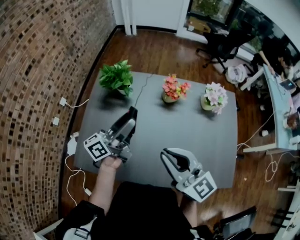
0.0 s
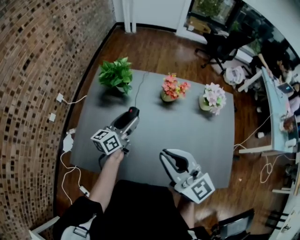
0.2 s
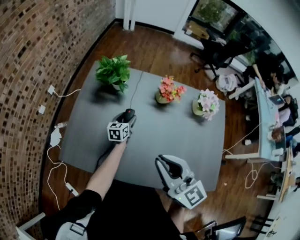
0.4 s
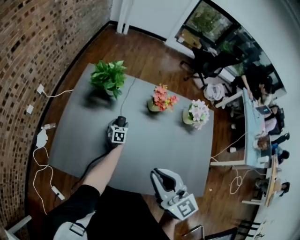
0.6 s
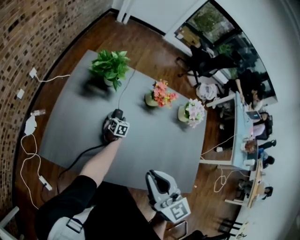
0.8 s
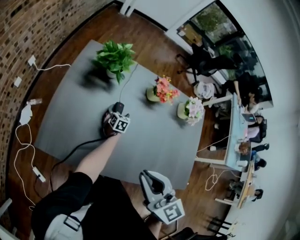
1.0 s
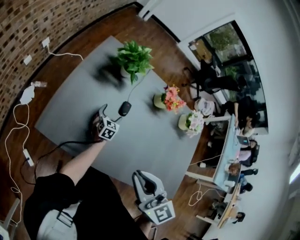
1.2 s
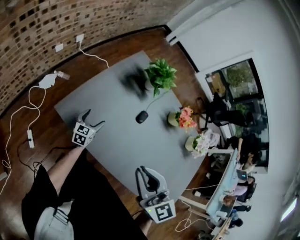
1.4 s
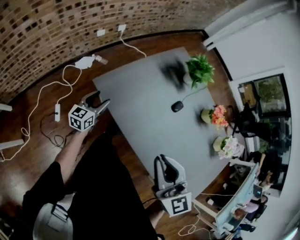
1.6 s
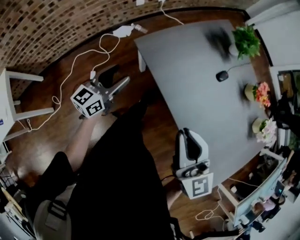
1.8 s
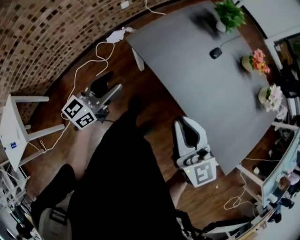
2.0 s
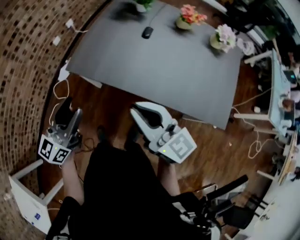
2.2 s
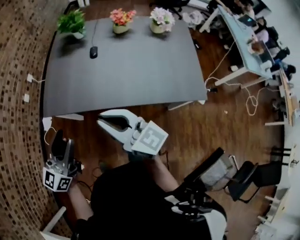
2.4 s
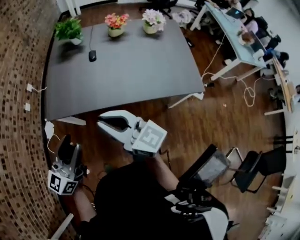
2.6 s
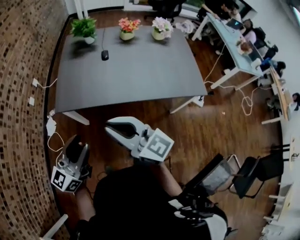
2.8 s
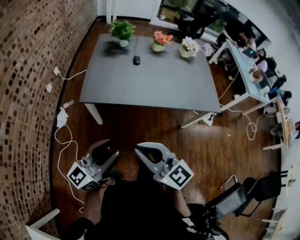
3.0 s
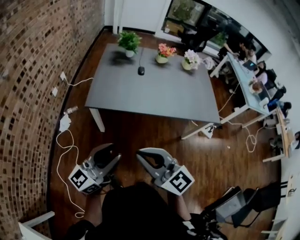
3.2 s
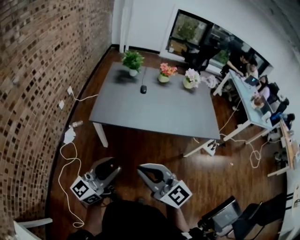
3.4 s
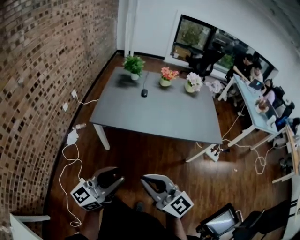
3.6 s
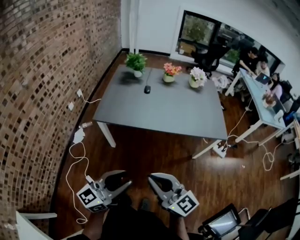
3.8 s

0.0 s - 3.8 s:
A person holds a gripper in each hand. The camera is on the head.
0.0 s - 1.2 s: The left gripper shifts some 35 cm downward, angles its fingers downward, by approximately 50 degrees, and opens up. The right gripper moves to the left, some 10 cm, and changes its angle by about 20 degrees.
1.2 s - 2.6 s: The left gripper shifts by about 60 cm, angles its fingers upward, by roughly 40 degrees, and closes. Meanwhile the right gripper changes place by some 25 cm, and swivels some 30 degrees.
2.6 s - 3.8 s: Both grippers travel together backward, roughly 30 cm.

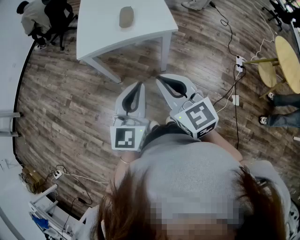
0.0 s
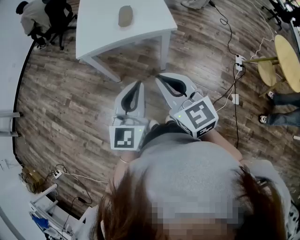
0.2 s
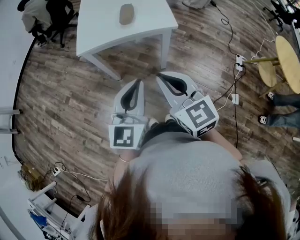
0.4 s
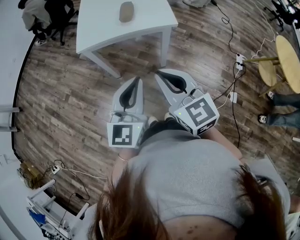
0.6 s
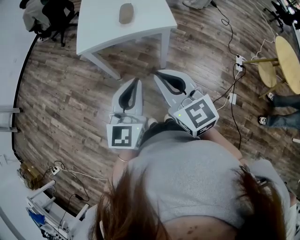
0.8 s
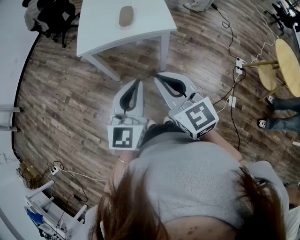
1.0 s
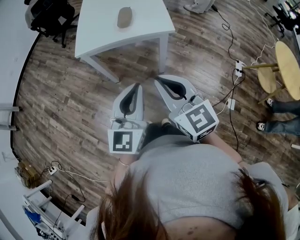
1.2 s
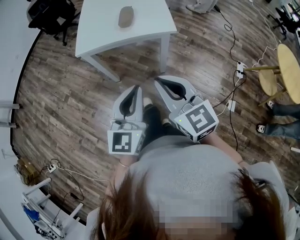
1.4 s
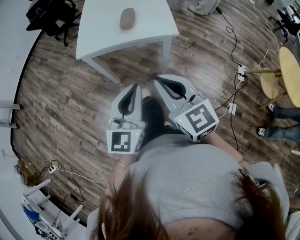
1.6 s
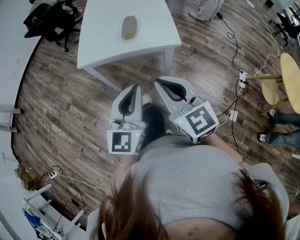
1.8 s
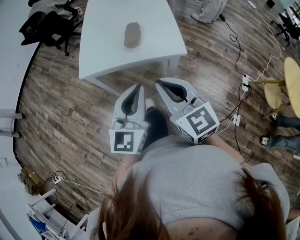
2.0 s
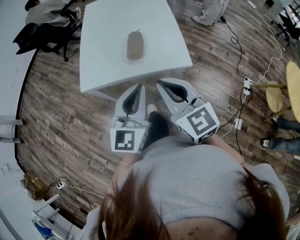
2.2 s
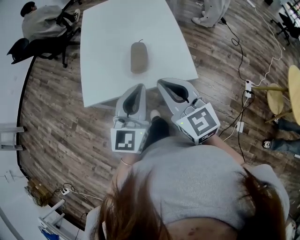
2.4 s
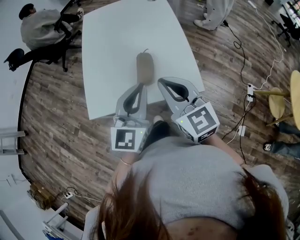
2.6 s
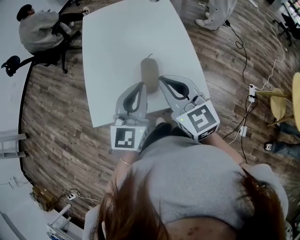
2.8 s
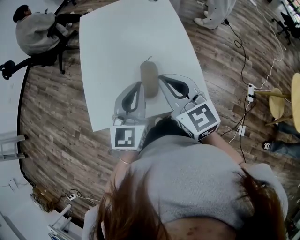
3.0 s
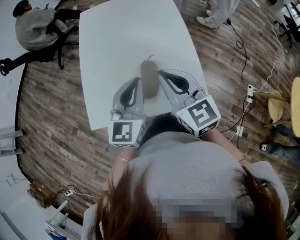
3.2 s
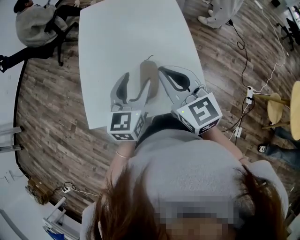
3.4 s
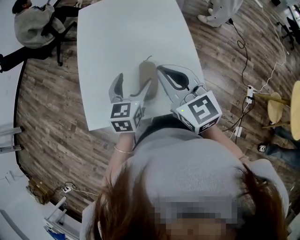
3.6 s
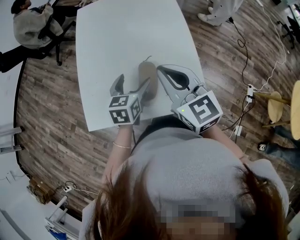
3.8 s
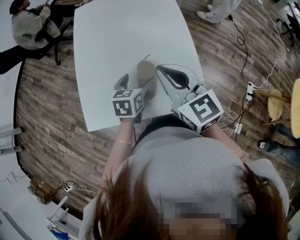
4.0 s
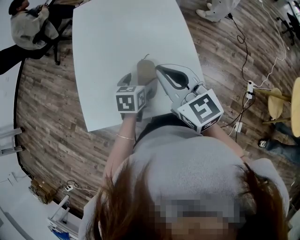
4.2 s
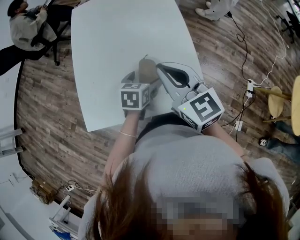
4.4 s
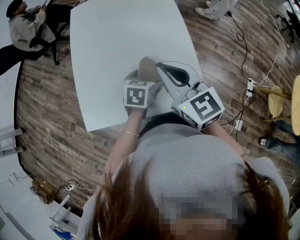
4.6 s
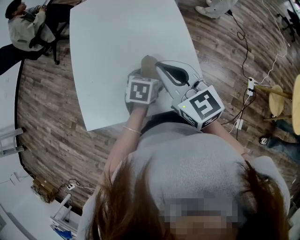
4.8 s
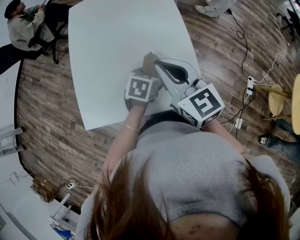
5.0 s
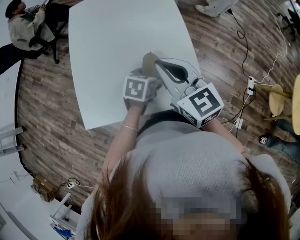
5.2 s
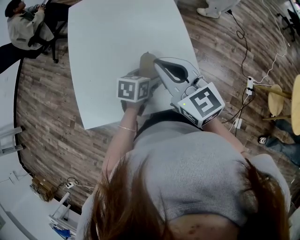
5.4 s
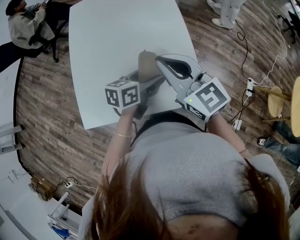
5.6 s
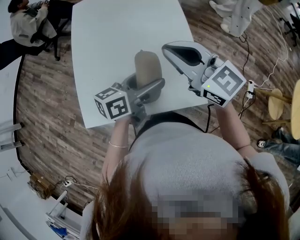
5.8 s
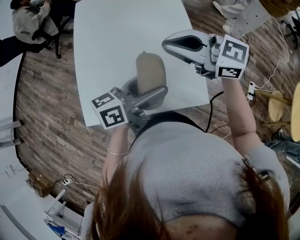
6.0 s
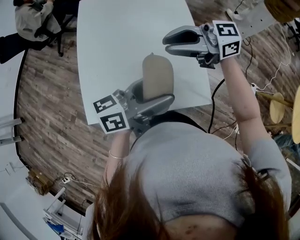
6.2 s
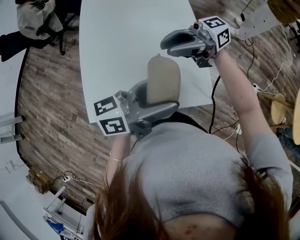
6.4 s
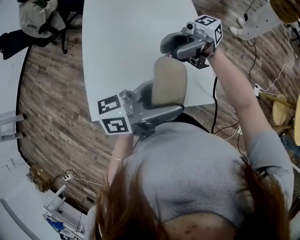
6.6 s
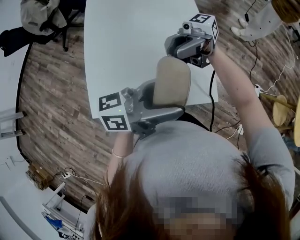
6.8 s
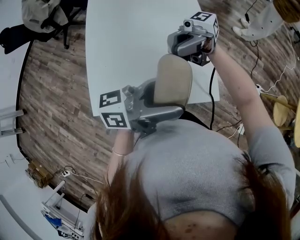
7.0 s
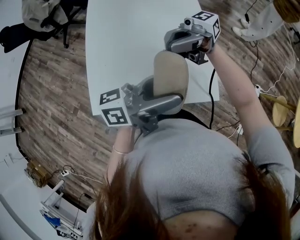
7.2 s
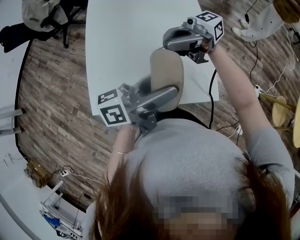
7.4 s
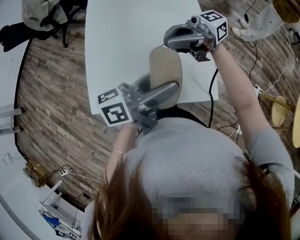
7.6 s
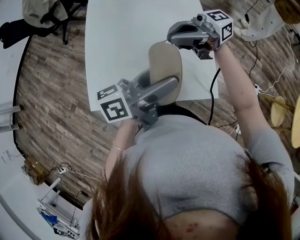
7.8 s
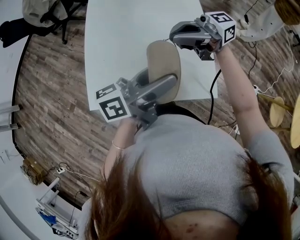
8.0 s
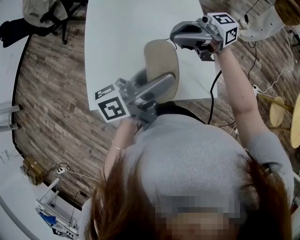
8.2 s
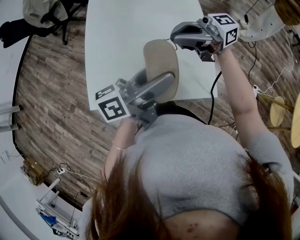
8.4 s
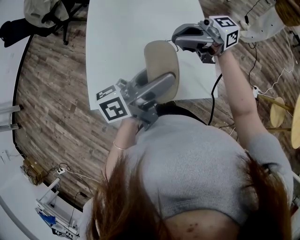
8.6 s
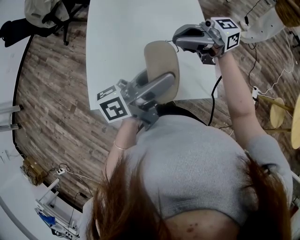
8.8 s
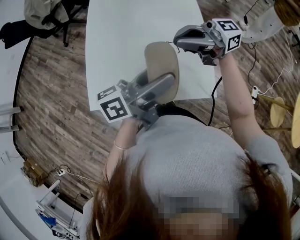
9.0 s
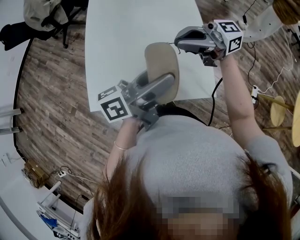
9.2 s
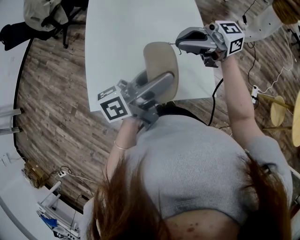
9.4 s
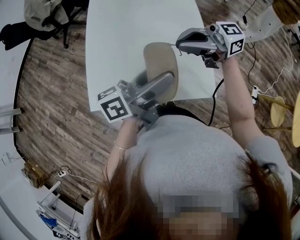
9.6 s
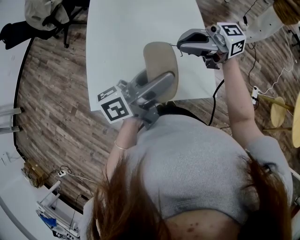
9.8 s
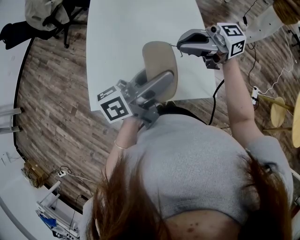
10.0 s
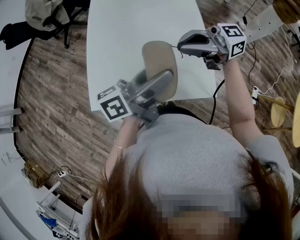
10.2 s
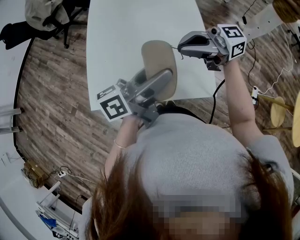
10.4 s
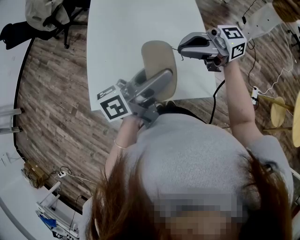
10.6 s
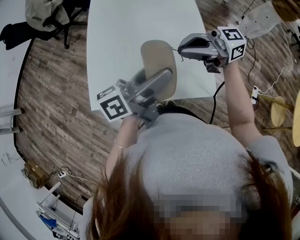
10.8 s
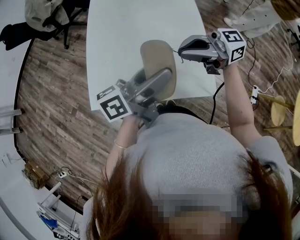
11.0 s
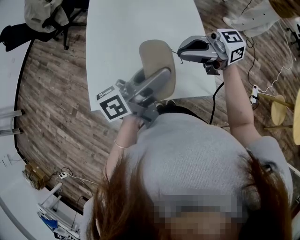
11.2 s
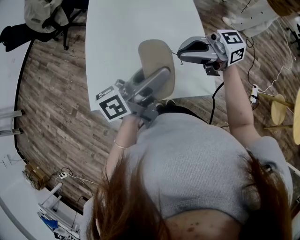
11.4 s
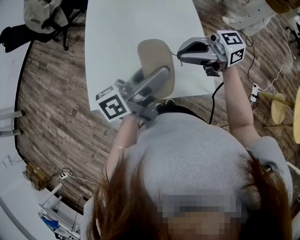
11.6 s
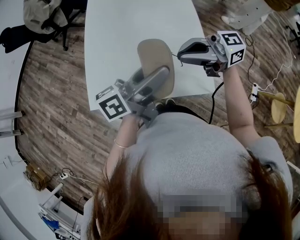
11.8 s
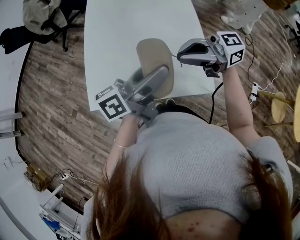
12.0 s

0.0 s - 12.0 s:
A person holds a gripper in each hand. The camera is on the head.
0.0 s - 1.6 s: The grippers stay close to where they were, moving slightly.
1.6 s - 3.0 s: The grippers both shift forward by about 35 cm.
3.0 s - 4.4 s: The left gripper shifts approximately 20 cm downward, angles its fingers downward, by approximately 40 degrees, and opens up.
4.4 s - 6.0 s: The left gripper is displaced upward by approximately 15 cm, and tips its fingers upward by about 40 degrees; the right gripper changes place by roughly 5 cm, and turns by some 40 degrees.
6.0 s - 7.6 s: The right gripper swivels about 60 degrees.
7.6 s - 10.4 s: The grippers move only a little.
10.4 s - 12.0 s: There are only small adjustments of the grippers.

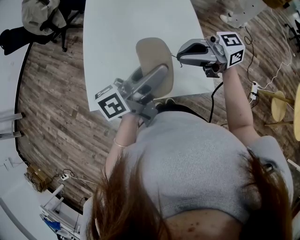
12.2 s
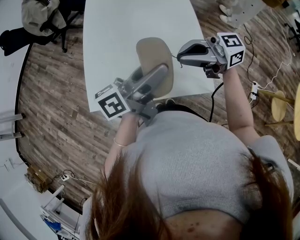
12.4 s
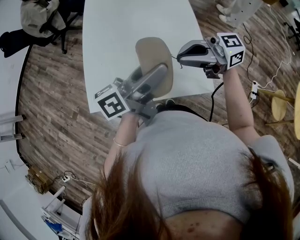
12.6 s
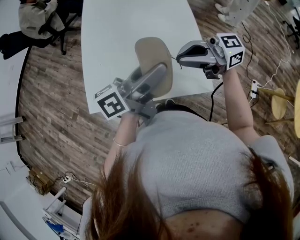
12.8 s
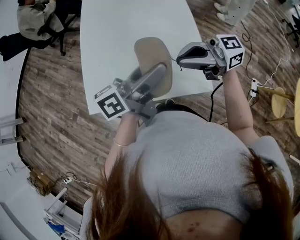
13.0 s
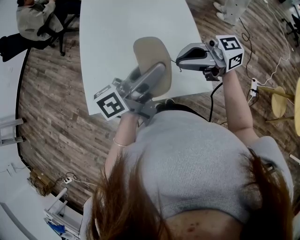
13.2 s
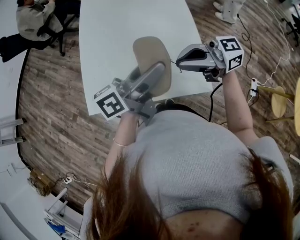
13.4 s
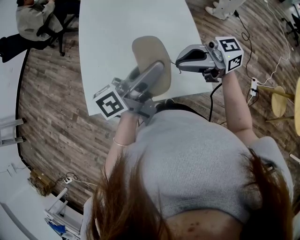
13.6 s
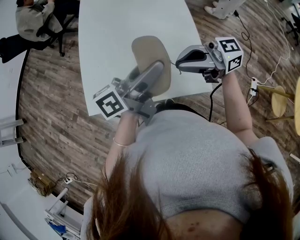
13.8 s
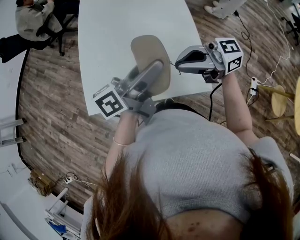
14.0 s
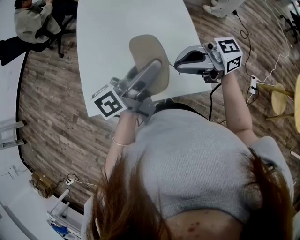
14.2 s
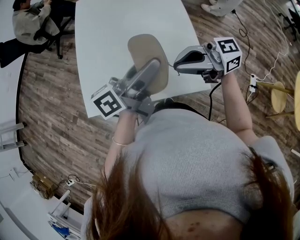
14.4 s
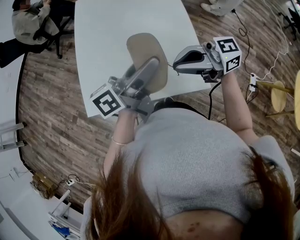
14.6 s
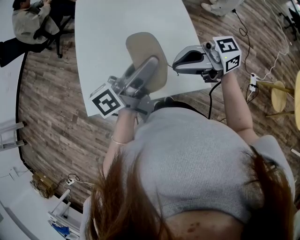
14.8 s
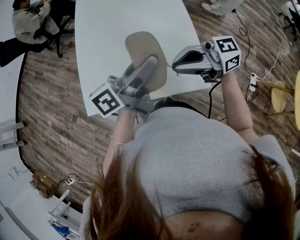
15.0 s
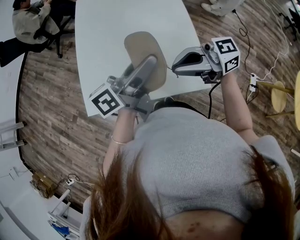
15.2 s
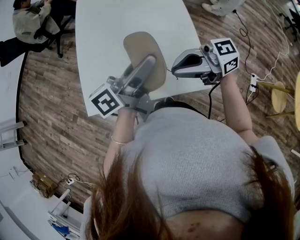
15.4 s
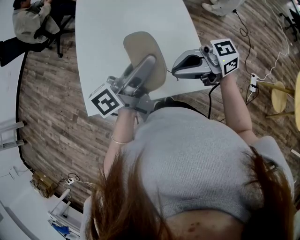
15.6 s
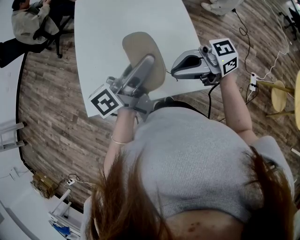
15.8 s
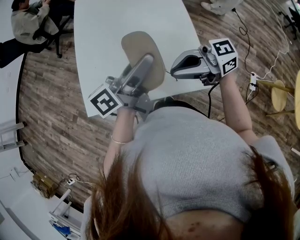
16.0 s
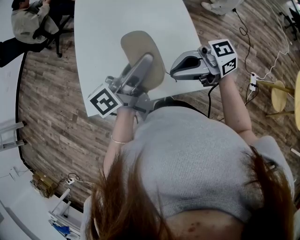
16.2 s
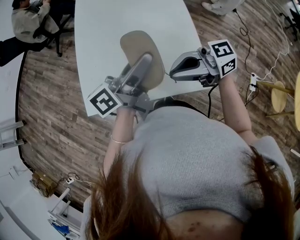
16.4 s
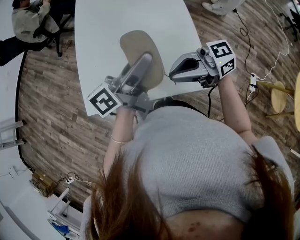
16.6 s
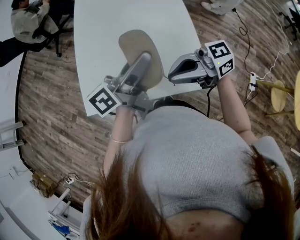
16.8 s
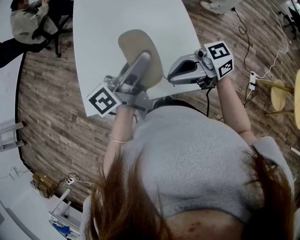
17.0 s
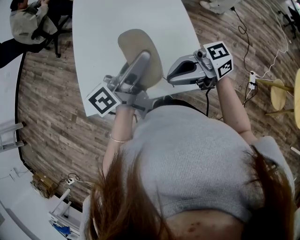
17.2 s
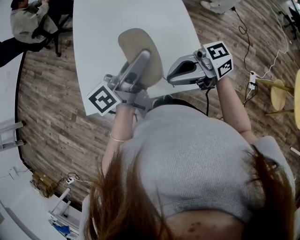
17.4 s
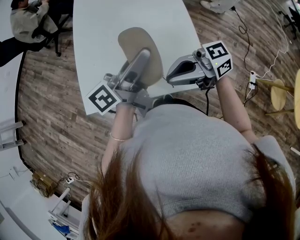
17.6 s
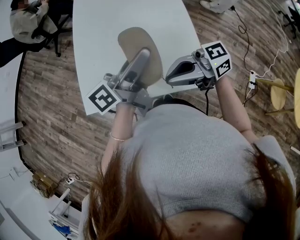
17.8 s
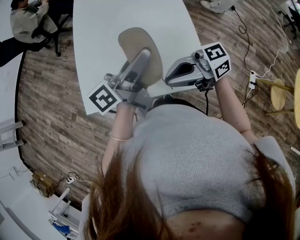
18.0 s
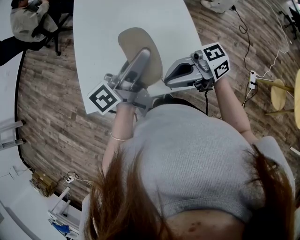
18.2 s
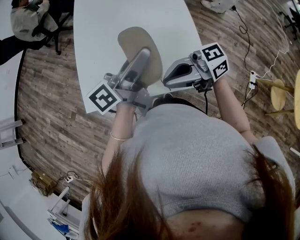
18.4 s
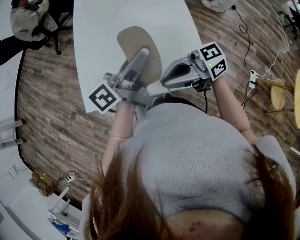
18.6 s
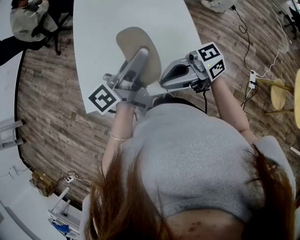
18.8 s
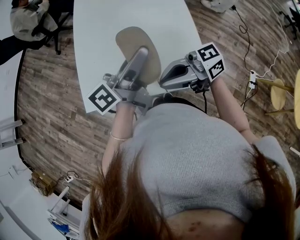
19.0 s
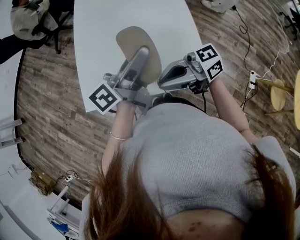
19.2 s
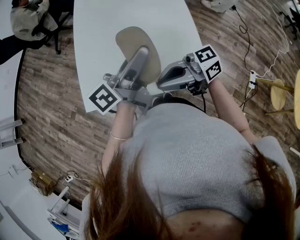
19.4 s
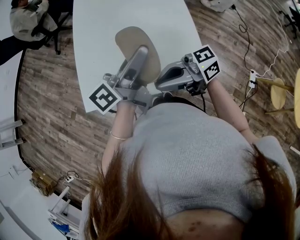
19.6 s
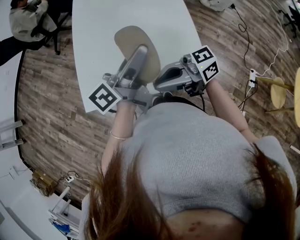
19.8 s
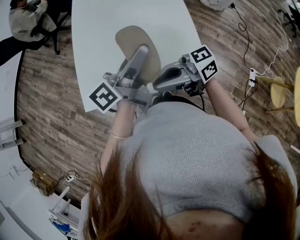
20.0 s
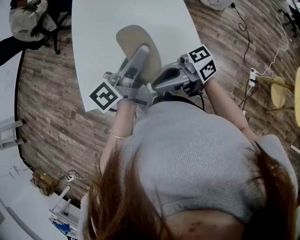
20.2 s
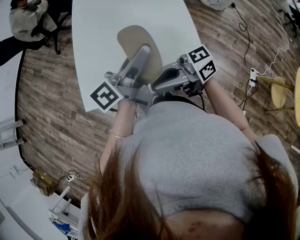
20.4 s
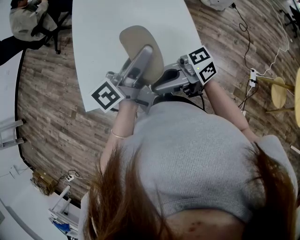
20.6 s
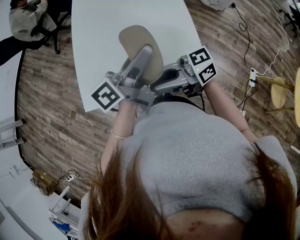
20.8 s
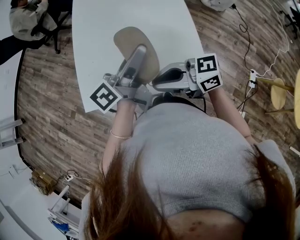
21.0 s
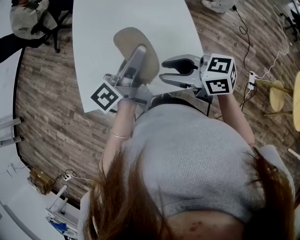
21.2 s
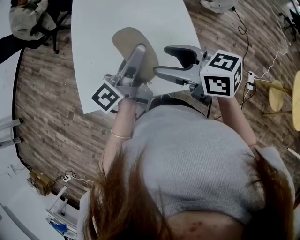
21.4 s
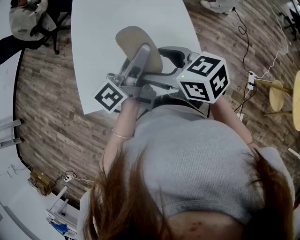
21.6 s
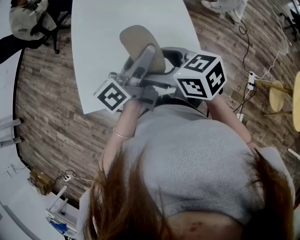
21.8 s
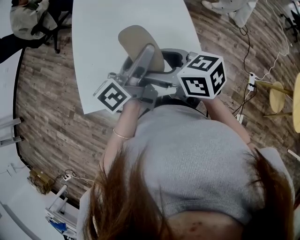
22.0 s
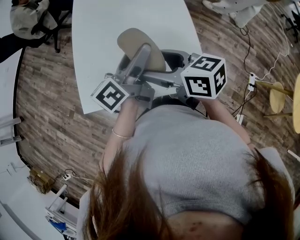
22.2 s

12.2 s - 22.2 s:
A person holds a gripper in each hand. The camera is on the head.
12.2 s - 16.4 s: There are only small adjustments of the grippers.
16.4 s - 19.4 s: There are only small adjustments of the grippers.
19.4 s - 20.8 s: There are only small adjustments of the grippers.
20.8 s - 22.2 s: The right gripper ends up about 10 cm from where it was, turns by about 50 degrees, and opens.
